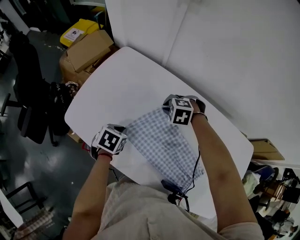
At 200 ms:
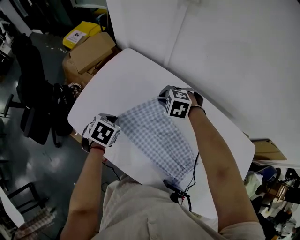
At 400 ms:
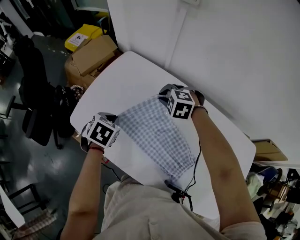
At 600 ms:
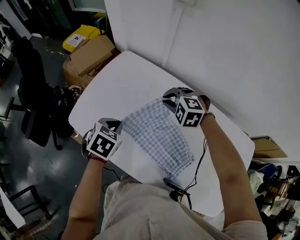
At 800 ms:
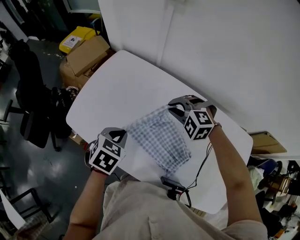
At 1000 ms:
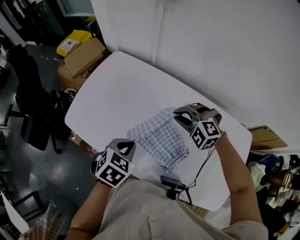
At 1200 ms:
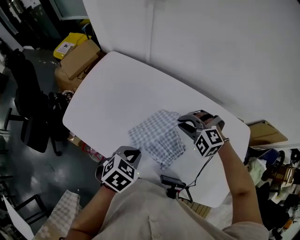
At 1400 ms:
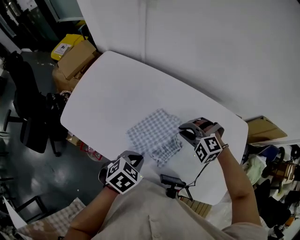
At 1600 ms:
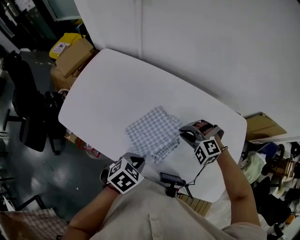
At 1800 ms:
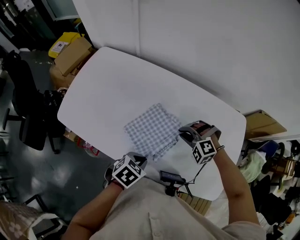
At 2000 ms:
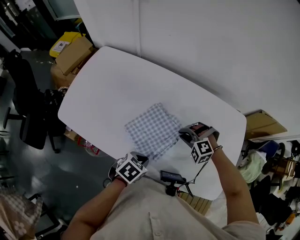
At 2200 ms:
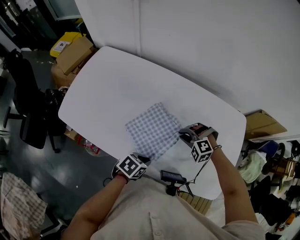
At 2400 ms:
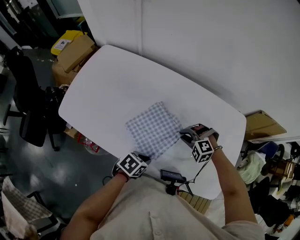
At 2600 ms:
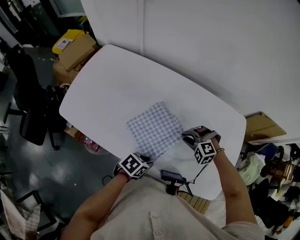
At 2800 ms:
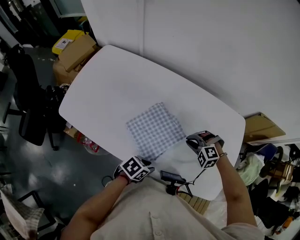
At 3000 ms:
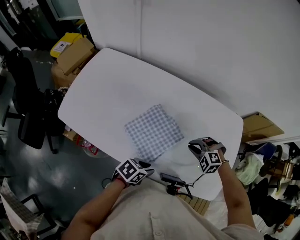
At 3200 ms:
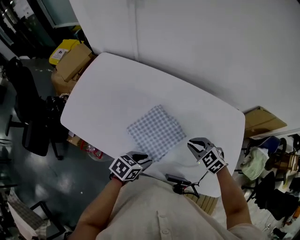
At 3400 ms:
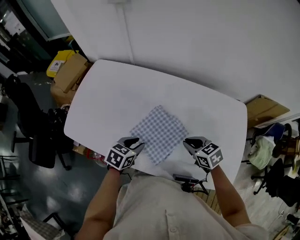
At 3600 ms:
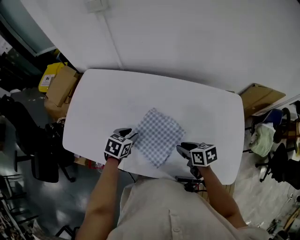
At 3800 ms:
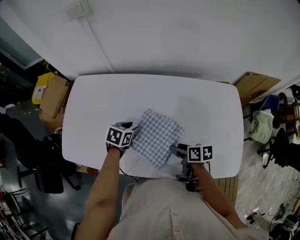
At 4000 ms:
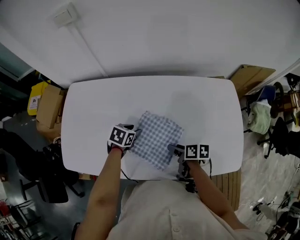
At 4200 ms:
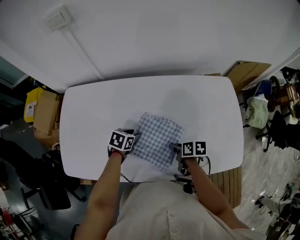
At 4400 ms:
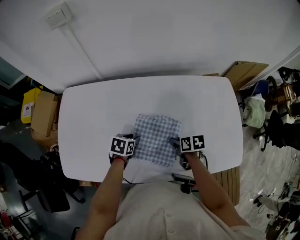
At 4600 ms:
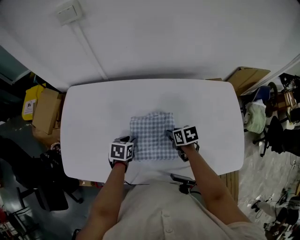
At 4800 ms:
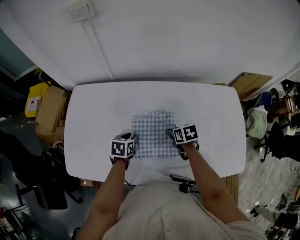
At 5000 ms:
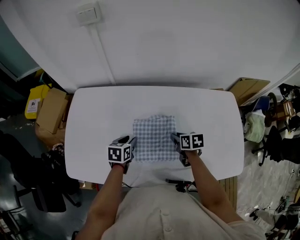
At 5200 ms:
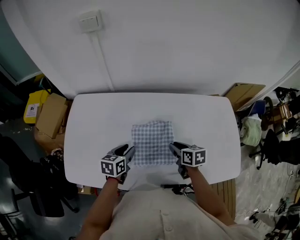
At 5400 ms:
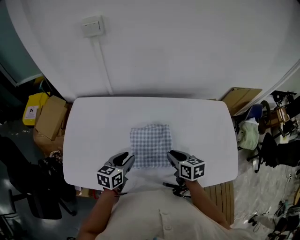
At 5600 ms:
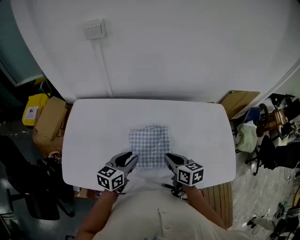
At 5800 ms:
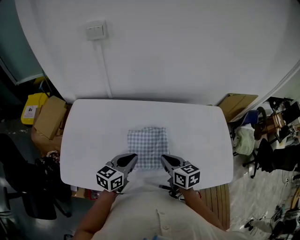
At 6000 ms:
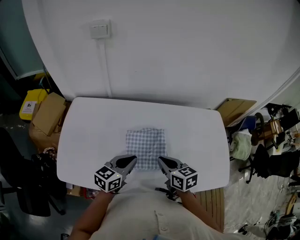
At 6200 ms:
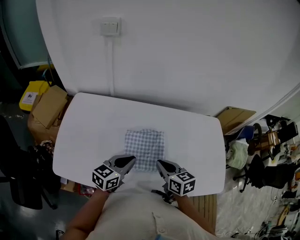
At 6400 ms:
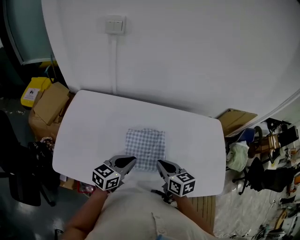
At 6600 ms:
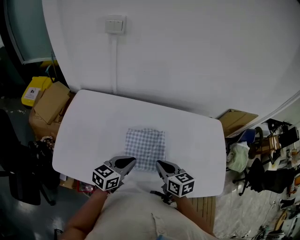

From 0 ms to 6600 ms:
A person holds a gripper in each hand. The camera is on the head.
From 0 ms to 1600 ms: The right gripper ends up roughly 25 cm from where it was, and changes its angle by approximately 20 degrees. Meanwhile the left gripper ends up roughly 30 cm from where it was, and swivels approximately 30 degrees.
From 1600 ms to 3200 ms: The right gripper goes downward and returns, approximately 10 cm each way, and twists about 50 degrees clockwise, seen from behind. Meanwhile the left gripper rotates roughly 20 degrees.
From 3200 ms to 5000 ms: The right gripper moves to the left, forward and downward, roughly 15 cm, rotates around the line of its fingers by roughly 70 degrees, clockwise from behind, and opens and closes again. Meanwhile the left gripper is displaced forward and to the left by roughly 25 cm.
From 5000 ms to 6600 ms: The right gripper heads upward and backward, covering approximately 15 cm, swivels some 30 degrees, and closes its fingers. The left gripper is displaced upward, backward and to the right by roughly 15 cm, turns by about 30 degrees, and closes its fingers.

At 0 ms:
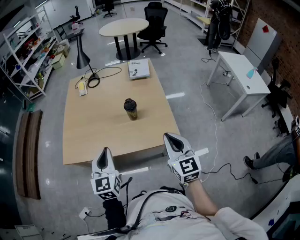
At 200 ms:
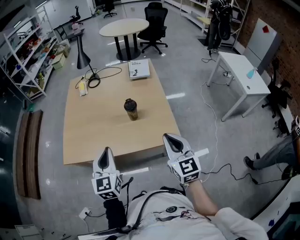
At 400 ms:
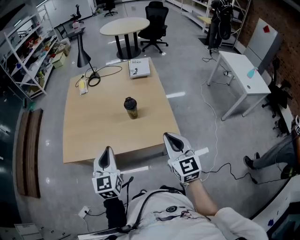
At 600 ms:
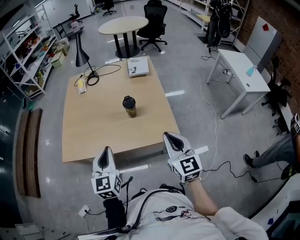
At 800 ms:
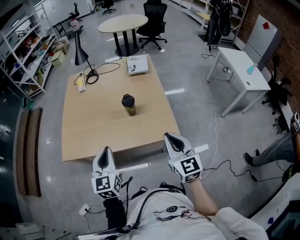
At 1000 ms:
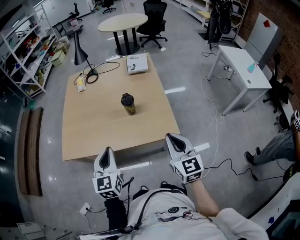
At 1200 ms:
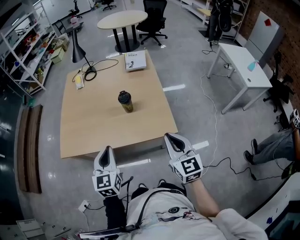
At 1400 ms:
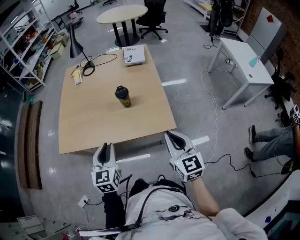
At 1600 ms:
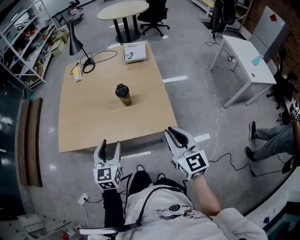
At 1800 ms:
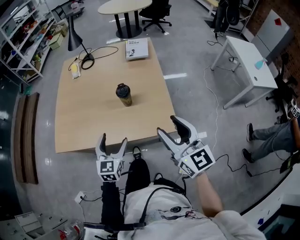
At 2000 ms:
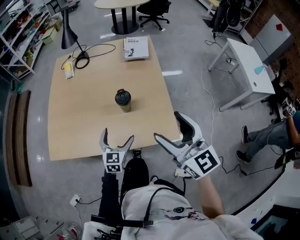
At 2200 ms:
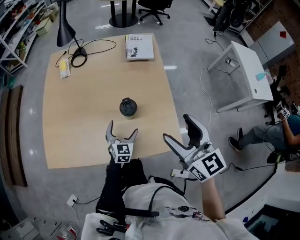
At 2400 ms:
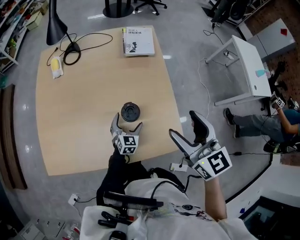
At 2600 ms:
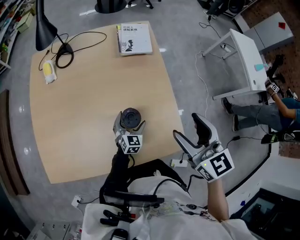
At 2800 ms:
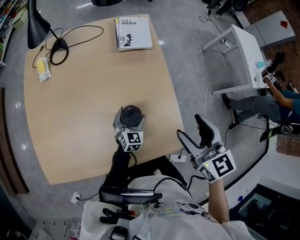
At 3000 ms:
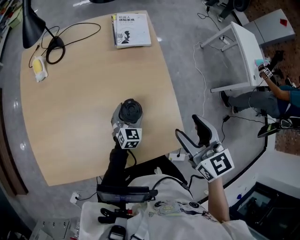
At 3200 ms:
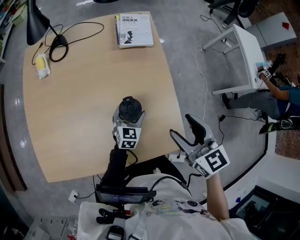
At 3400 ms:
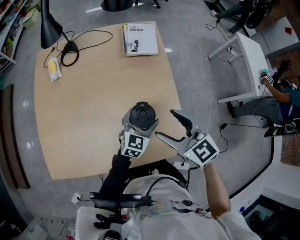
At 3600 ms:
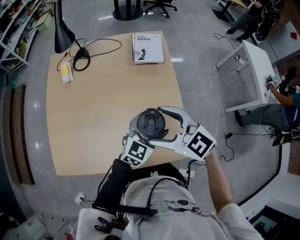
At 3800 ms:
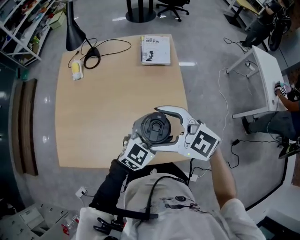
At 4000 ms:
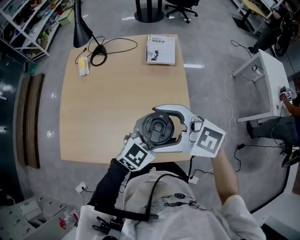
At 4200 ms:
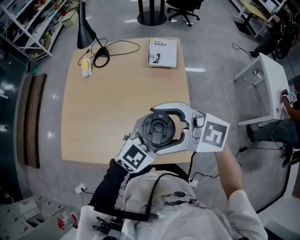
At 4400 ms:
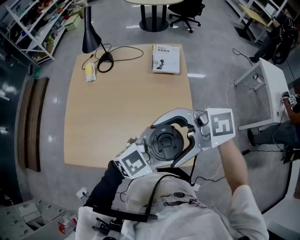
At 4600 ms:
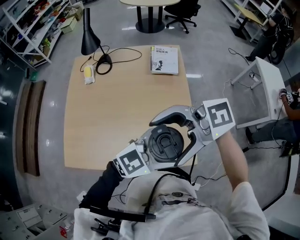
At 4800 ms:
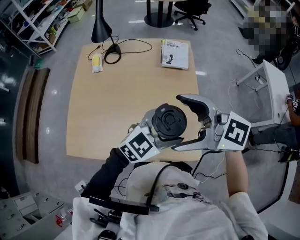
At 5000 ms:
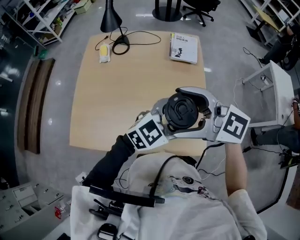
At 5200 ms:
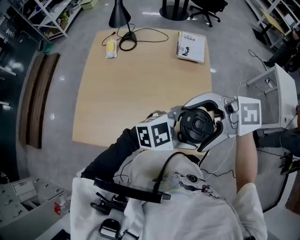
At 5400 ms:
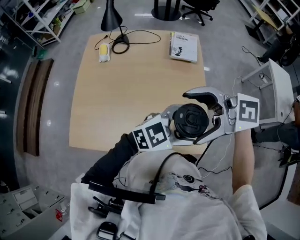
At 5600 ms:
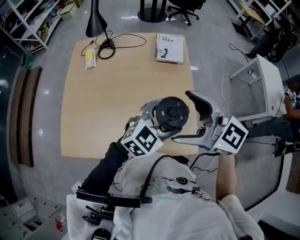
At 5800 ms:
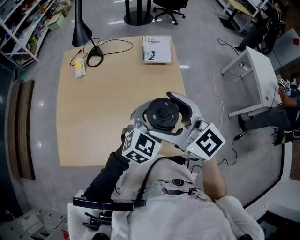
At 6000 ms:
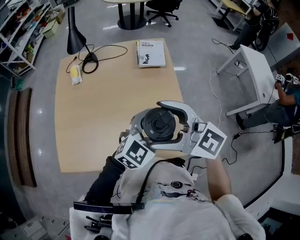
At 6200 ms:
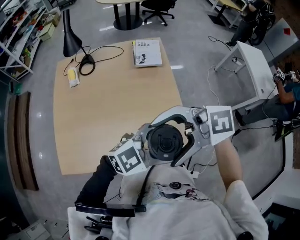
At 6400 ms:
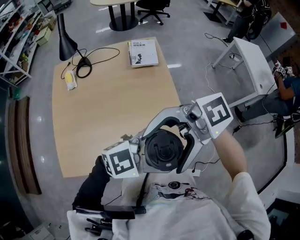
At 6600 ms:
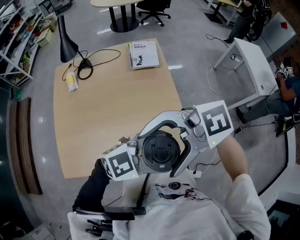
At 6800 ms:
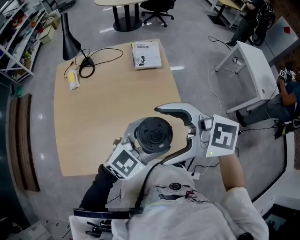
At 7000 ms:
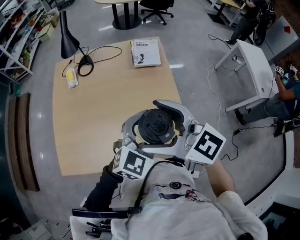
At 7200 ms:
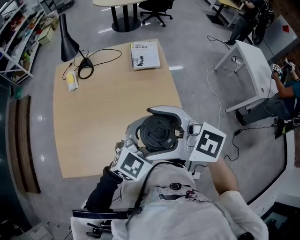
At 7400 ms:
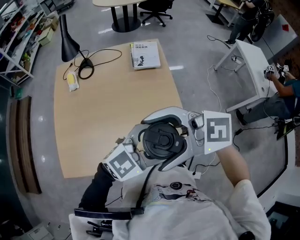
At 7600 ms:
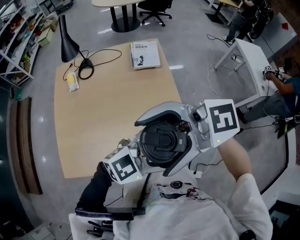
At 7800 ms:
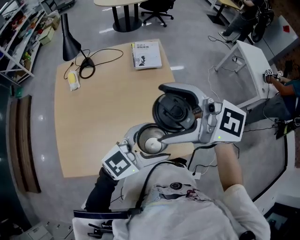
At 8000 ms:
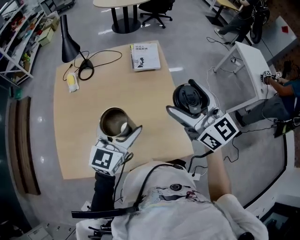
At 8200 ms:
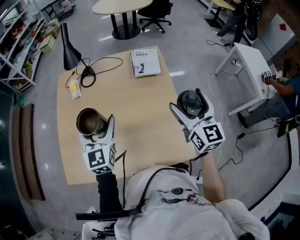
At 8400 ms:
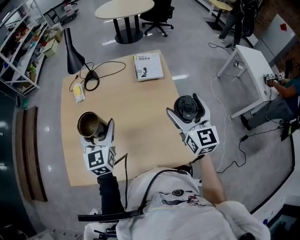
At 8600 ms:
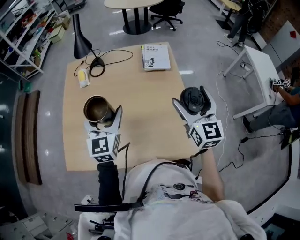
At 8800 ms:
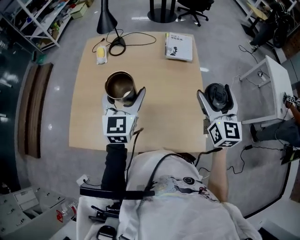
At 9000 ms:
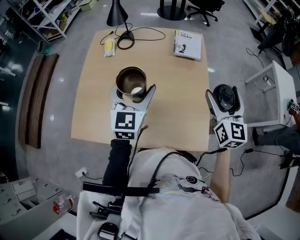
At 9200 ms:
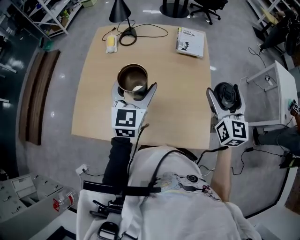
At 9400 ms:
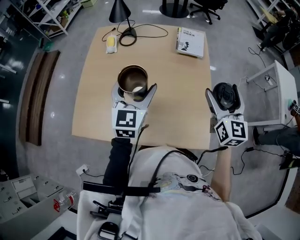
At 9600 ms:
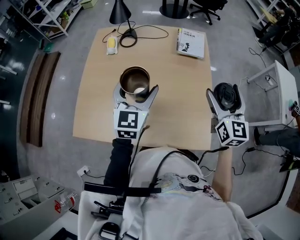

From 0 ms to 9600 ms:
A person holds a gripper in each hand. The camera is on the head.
From 0 ms to 1600 ms: The right gripper is displaced to the right by approximately 5 cm. The left gripper goes roughly 10 cm downward and to the right, and opens.
From 1600 ms to 3200 ms: The right gripper travels forward by roughly 30 cm, and opens up. Meanwhile the left gripper goes roughly 40 cm forward and downward, swivels about 20 degrees, and opens.
From 3200 ms to 4800 ms: The left gripper goes approximately 30 cm upward, and swivels about 30 degrees. Meanwhile the right gripper goes approximately 20 cm upward, changes its angle by approximately 60 degrees, and opens up.
From 4800 ms to 6400 ms: The right gripper ends up roughly 10 cm from where it was, and turns by some 40 degrees; the left gripper shifts by roughly 15 cm, and rotates approximately 40 degrees.
From 6400 ms to 8000 ms: The right gripper ends up approximately 20 cm from where it was, and rotates approximately 90 degrees. The left gripper shifts by about 20 cm, and turns by some 60 degrees.
From 8000 ms to 9600 ms: The right gripper goes approximately 5 cm downward, while the left gripper moves to the left, some 10 cm, and rotates approximately 30 degrees.

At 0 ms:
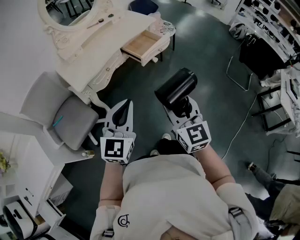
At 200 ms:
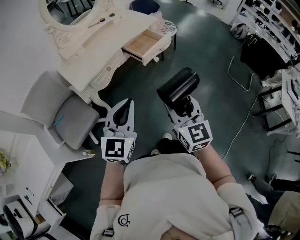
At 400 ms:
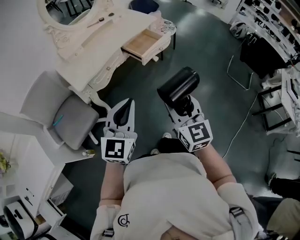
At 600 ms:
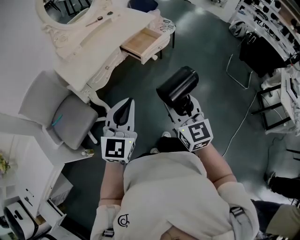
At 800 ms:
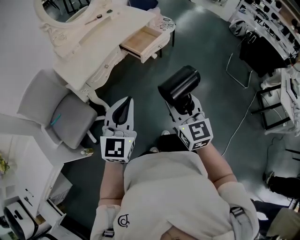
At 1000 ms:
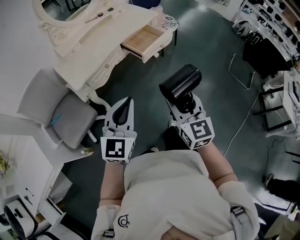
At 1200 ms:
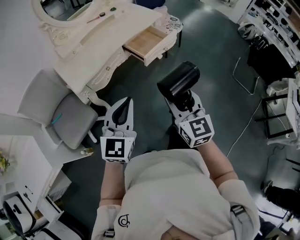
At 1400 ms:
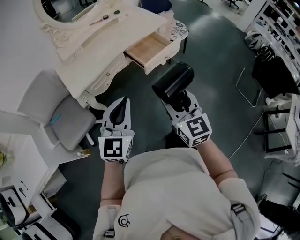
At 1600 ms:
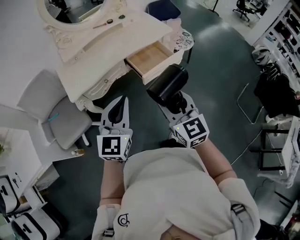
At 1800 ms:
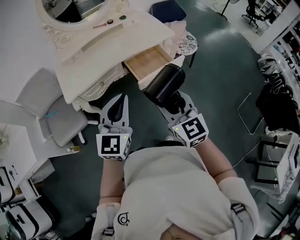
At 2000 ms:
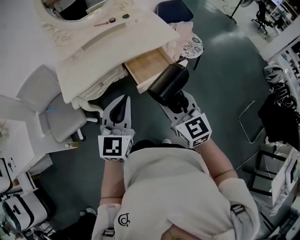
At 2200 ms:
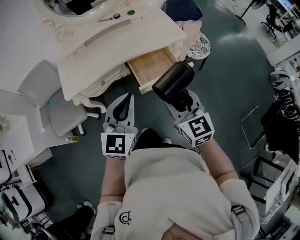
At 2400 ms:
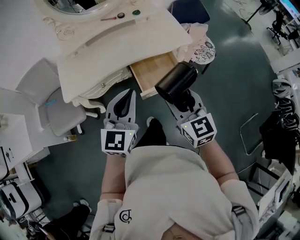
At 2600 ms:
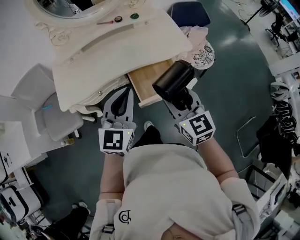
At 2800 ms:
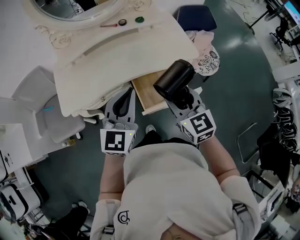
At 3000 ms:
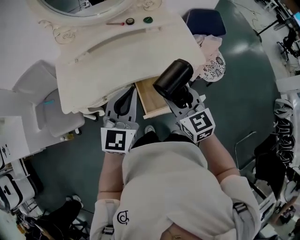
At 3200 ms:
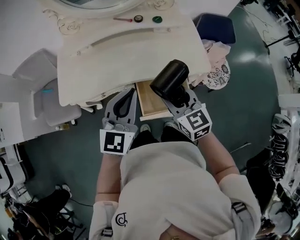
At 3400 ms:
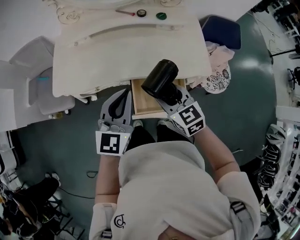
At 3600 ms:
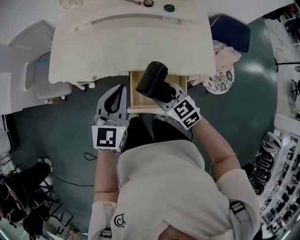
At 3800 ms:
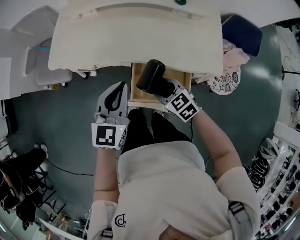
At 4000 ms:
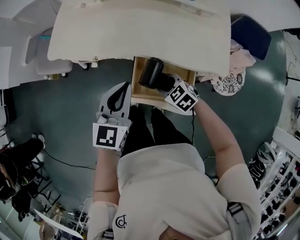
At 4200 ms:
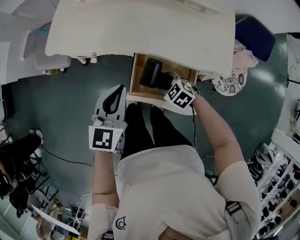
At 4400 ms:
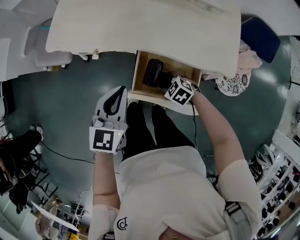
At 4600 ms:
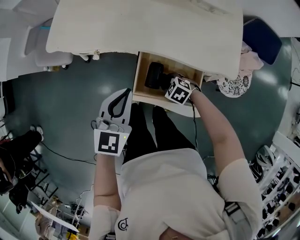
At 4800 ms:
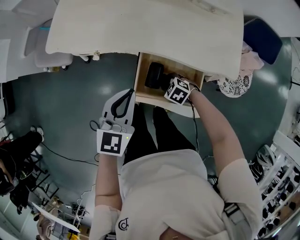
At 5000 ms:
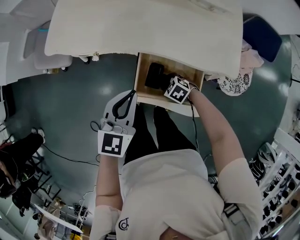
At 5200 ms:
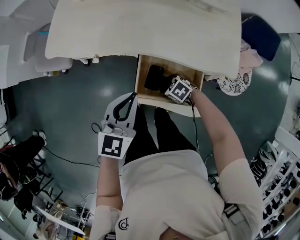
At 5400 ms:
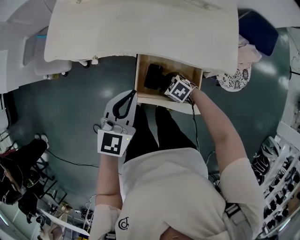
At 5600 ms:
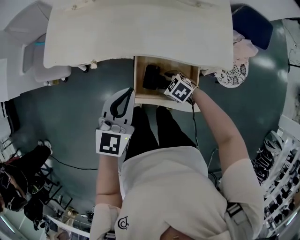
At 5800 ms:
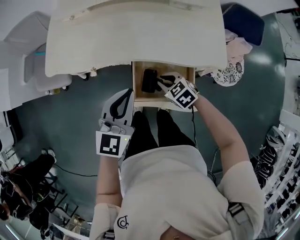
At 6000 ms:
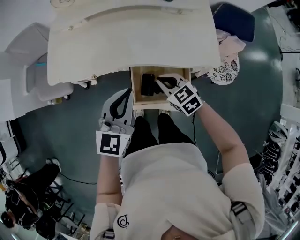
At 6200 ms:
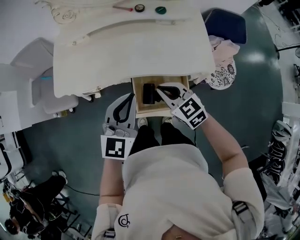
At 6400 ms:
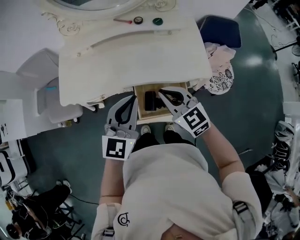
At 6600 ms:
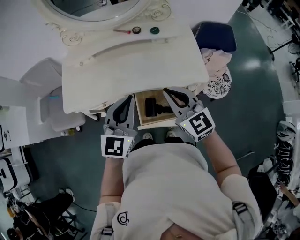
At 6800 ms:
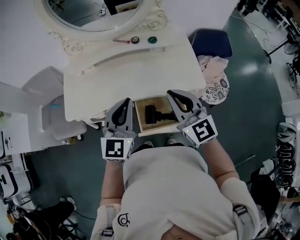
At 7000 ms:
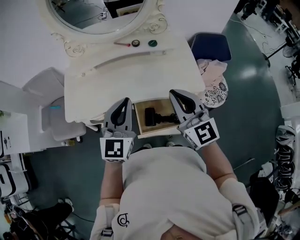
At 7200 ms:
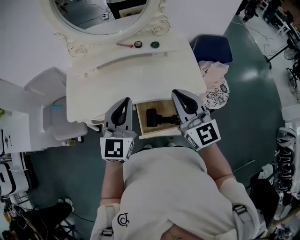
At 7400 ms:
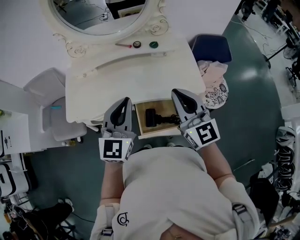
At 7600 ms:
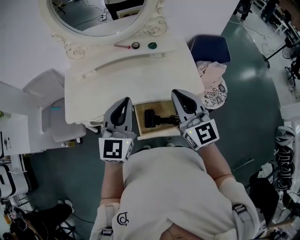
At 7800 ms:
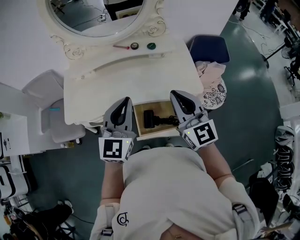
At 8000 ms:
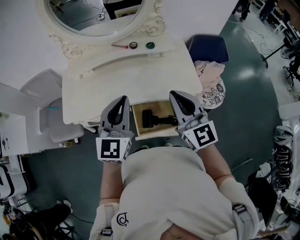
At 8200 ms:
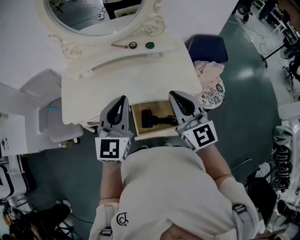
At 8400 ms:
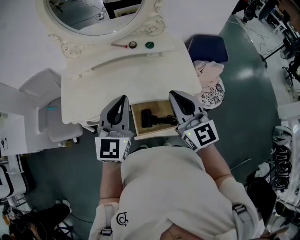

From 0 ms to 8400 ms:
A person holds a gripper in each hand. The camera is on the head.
From 0 ms to 1400 ms: The grippers both shift forward by approximately 15 cm.
From 1400 ms to 2800 ms: The right gripper moves forward, approximately 40 cm, and changes its angle by about 30 degrees; the left gripper goes approximately 40 cm forward and to the right.
From 2800 ms to 4200 ms: The left gripper heads downward, covering approximately 15 cm, and turns by roughly 30 degrees. Meanwhile the right gripper heads downward, covering about 35 cm, and points its fingers roughly 40 degrees further downward.
From 4200 ms to 5600 ms: The right gripper opens up.
From 5600 ms to 7000 ms: The right gripper goes roughly 40 cm upward, tilts its fingers roughly 60 degrees upward, and closes its fingers. The left gripper travels upward by some 15 cm.
From 7000 ms to 8400 ms: The grippers move only a little.
